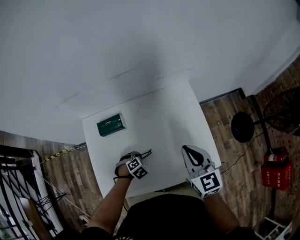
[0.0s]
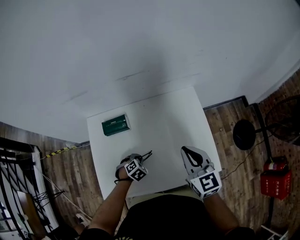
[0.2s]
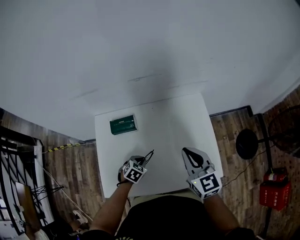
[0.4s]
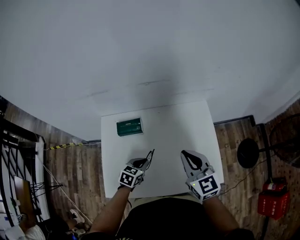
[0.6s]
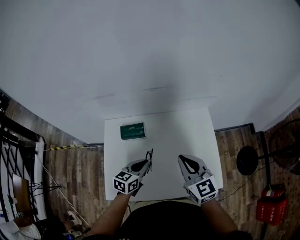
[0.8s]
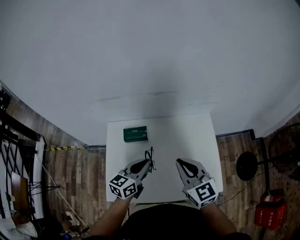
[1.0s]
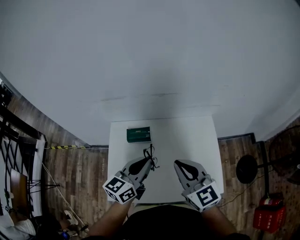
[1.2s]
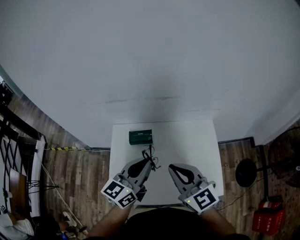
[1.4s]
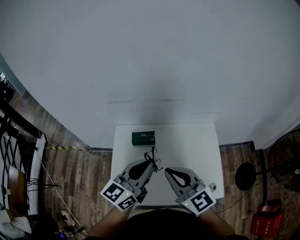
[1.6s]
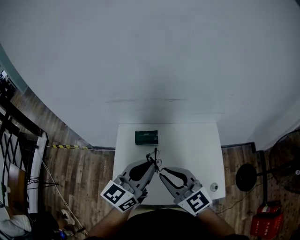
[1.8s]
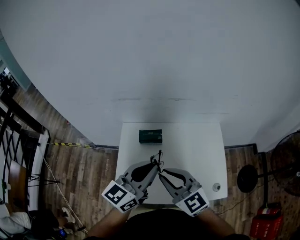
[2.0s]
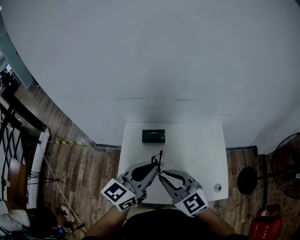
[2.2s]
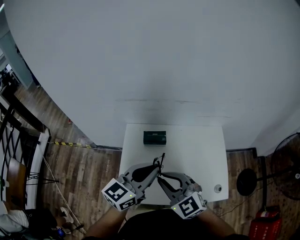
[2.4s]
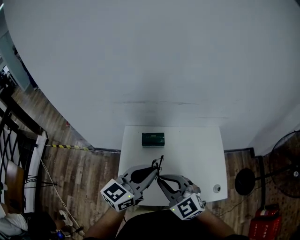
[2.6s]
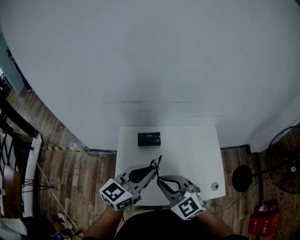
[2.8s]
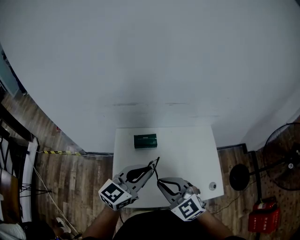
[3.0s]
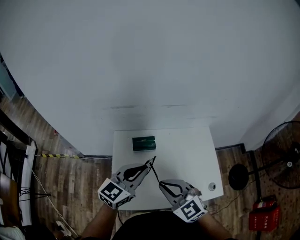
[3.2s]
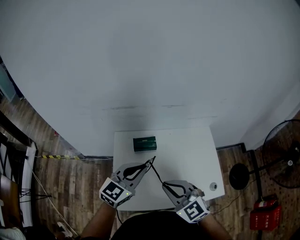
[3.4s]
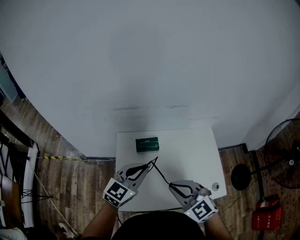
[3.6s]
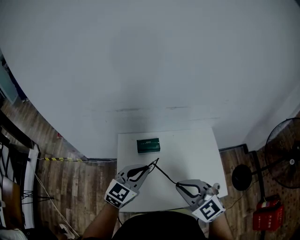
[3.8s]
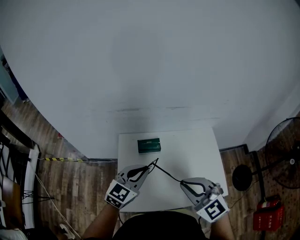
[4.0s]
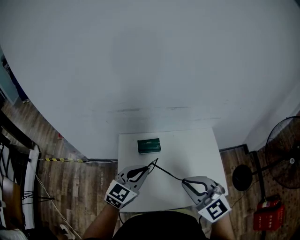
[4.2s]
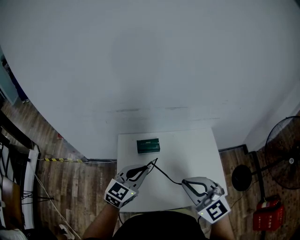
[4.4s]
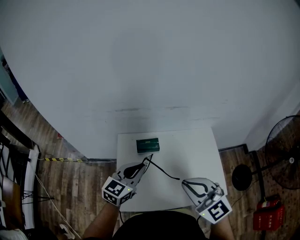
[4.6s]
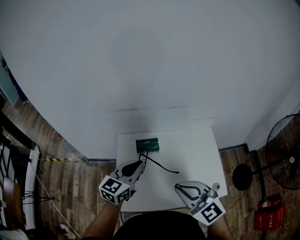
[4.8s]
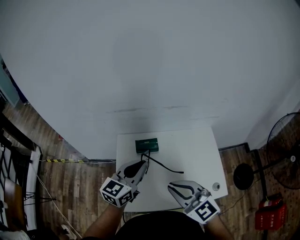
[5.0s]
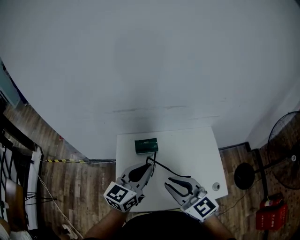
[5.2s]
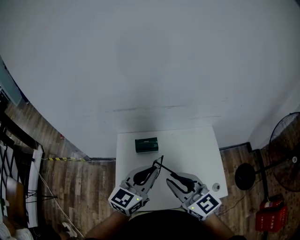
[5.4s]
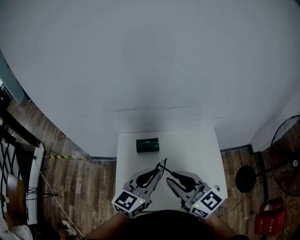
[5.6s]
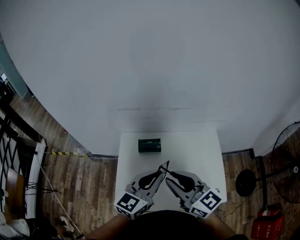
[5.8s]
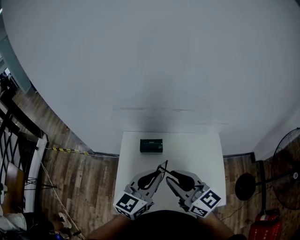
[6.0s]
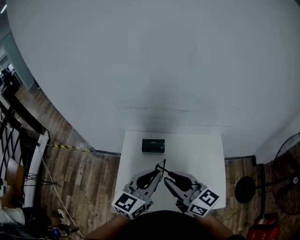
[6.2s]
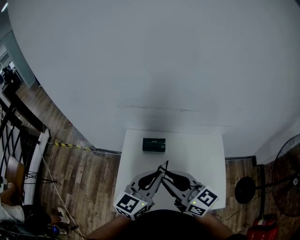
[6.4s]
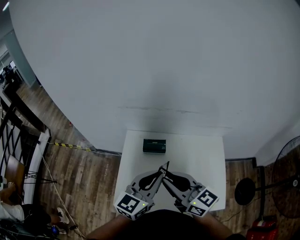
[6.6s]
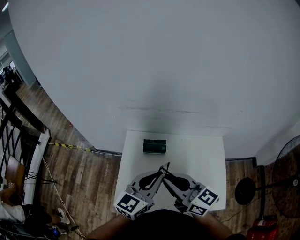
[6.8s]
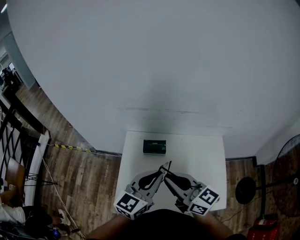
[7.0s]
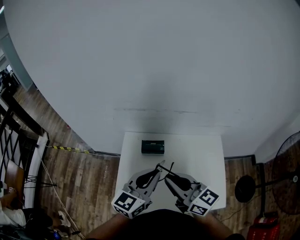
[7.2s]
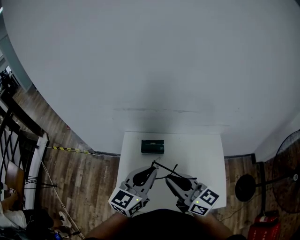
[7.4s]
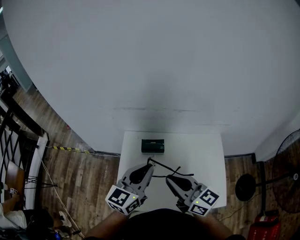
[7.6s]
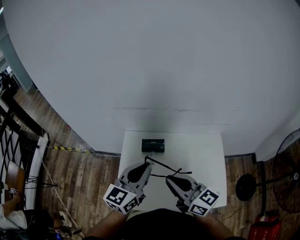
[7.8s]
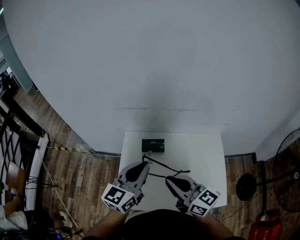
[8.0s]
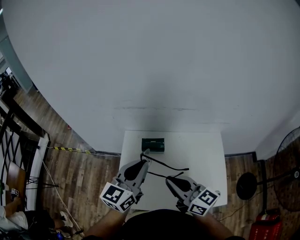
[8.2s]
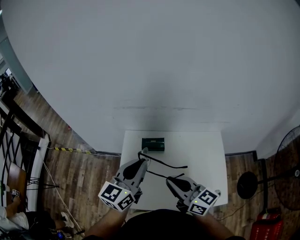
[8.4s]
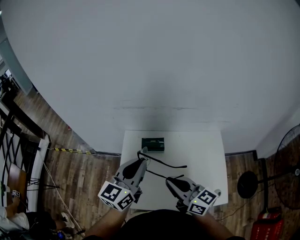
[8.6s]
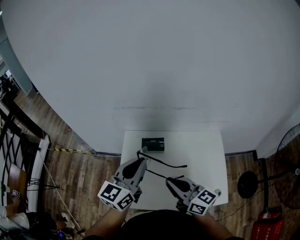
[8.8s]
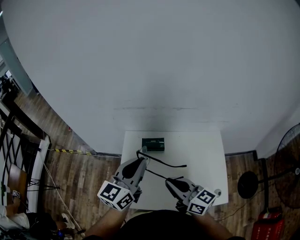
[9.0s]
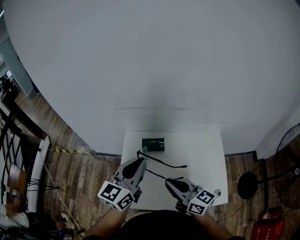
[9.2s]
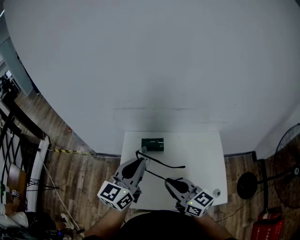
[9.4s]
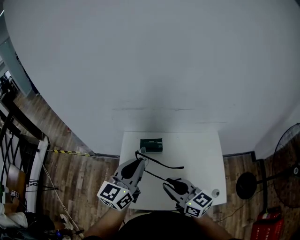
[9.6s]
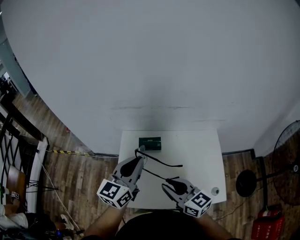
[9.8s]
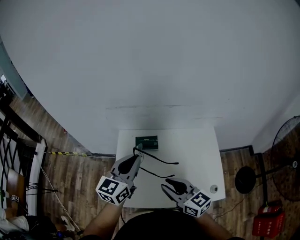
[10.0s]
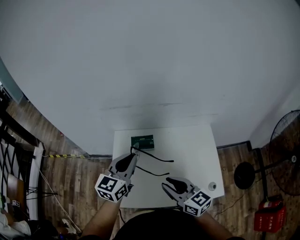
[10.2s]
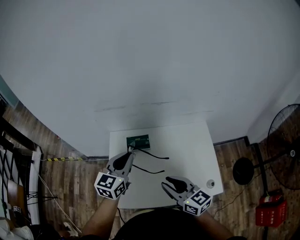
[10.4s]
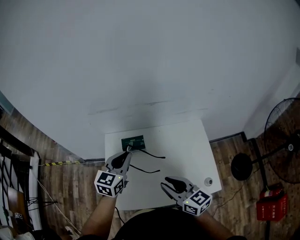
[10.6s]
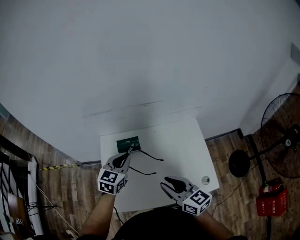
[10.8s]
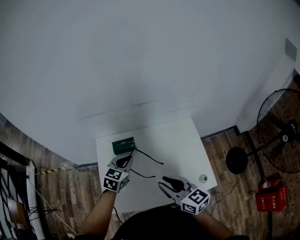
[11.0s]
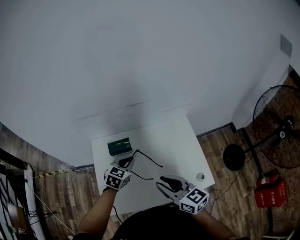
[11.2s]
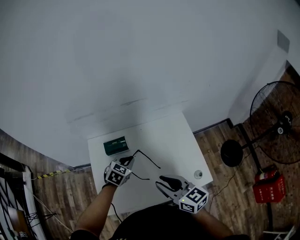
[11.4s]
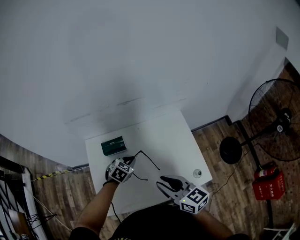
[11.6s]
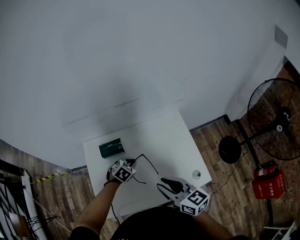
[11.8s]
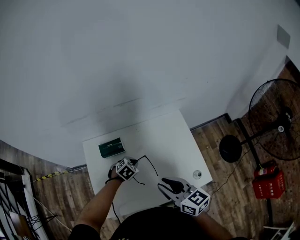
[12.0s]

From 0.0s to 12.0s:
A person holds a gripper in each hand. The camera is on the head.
From 0.0s to 1.6s: The left gripper moves upward, approximately 40 cm, and tips its fingers upward by about 80 degrees; the right gripper shifts by roughly 25 cm, and rotates roughly 30 degrees.
From 1.6s to 3.0s: The left gripper shifts approximately 5 cm to the left; the right gripper travels to the left and downward by about 10 cm, and turns by some 20 degrees.
From 3.0s to 4.4s: The left gripper changes place by roughly 5 cm. The right gripper is displaced to the right and upward by approximately 10 cm.
From 4.4s to 6.0s: The left gripper goes approximately 5 cm to the right; the right gripper goes roughly 5 cm forward, and changes its angle by some 40 degrees.
From 6.0s to 7.6s: The left gripper moves some 5 cm.
From 7.6s to 9.0s: There are only small adjustments of the grippers.
From 9.0s to 10.4s: The right gripper changes place by approximately 5 cm, and opens its fingers. The left gripper shifts approximately 5 cm downward.
From 10.4s to 12.0s: The right gripper shifts some 10 cm to the right, while the left gripper travels downward and to the right by about 35 cm, and tilts its fingers some 50 degrees downward.

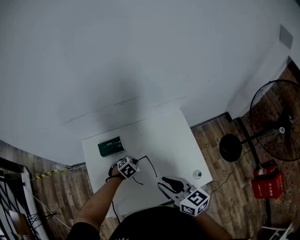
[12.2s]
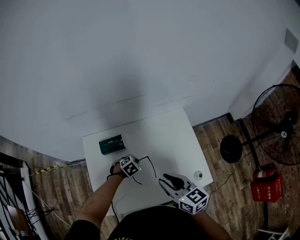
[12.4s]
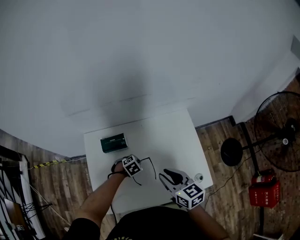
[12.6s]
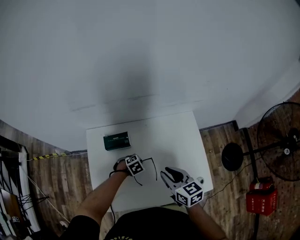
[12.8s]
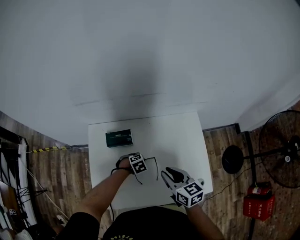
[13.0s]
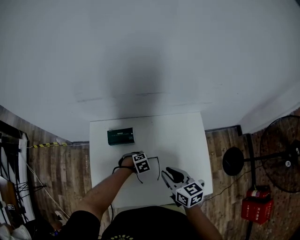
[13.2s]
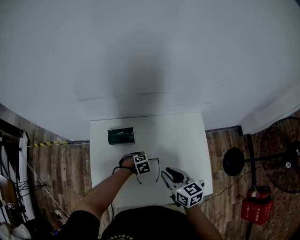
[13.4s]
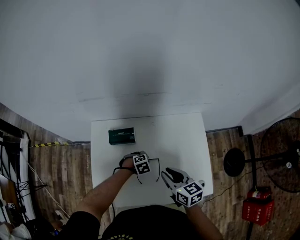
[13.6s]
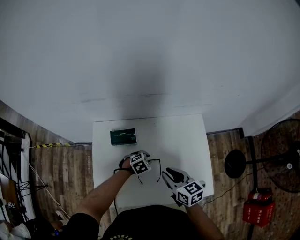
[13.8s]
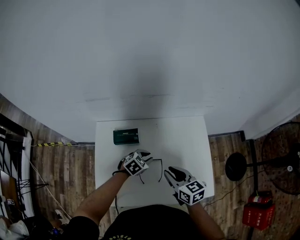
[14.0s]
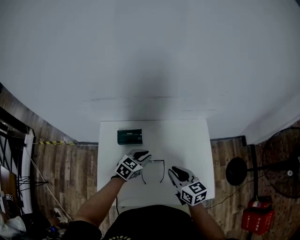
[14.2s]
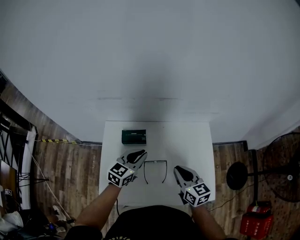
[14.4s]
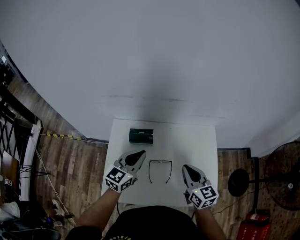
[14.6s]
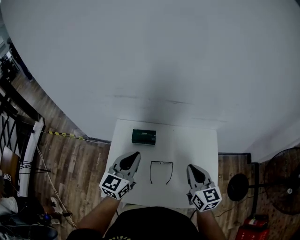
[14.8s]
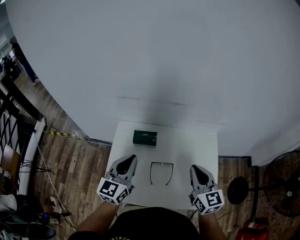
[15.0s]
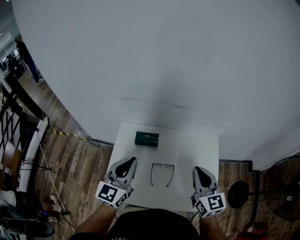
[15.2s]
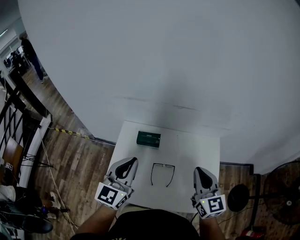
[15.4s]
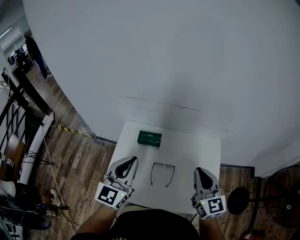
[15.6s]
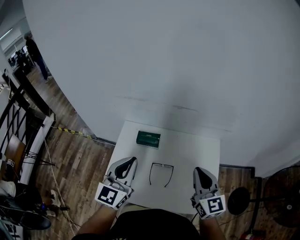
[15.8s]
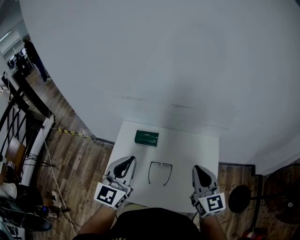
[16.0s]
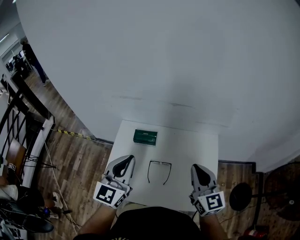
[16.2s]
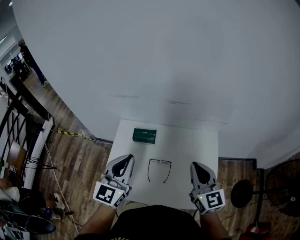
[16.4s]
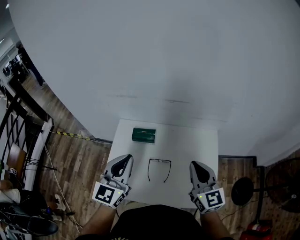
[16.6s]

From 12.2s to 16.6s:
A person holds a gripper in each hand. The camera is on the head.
From 12.2s to 13.6s: The right gripper travels downward and forward by roughly 10 cm. The left gripper is displaced downward by some 5 cm.
From 13.6s to 15.2s: The left gripper moves upward, roughly 40 cm, and tilts its fingers roughly 70 degrees upward. Meanwhile the right gripper goes approximately 15 cm upward, swivels about 30 degrees, and closes its fingers.
From 15.2s to 16.6s: The grippers stay close to where they were, moving slightly.

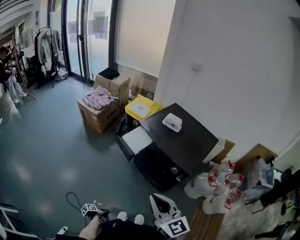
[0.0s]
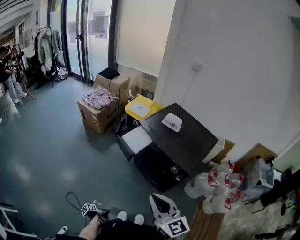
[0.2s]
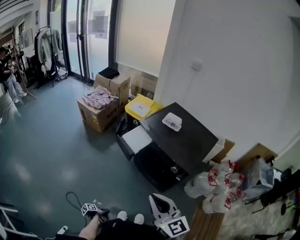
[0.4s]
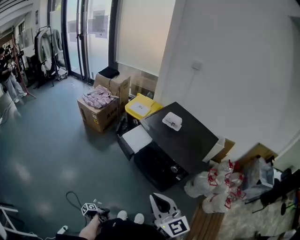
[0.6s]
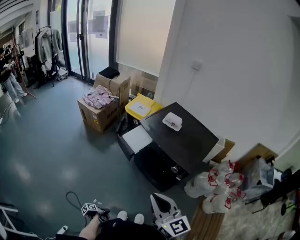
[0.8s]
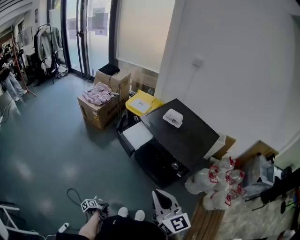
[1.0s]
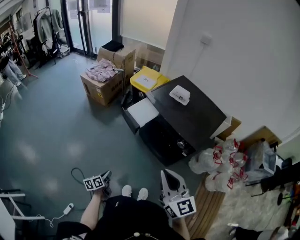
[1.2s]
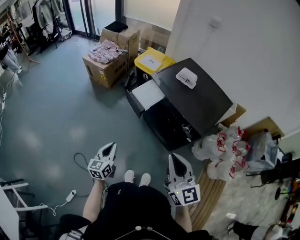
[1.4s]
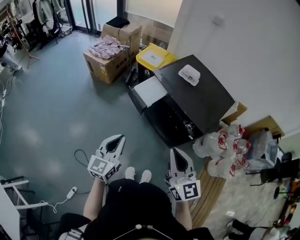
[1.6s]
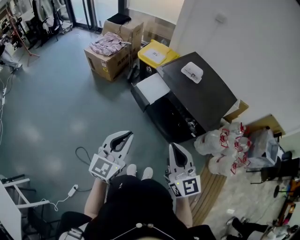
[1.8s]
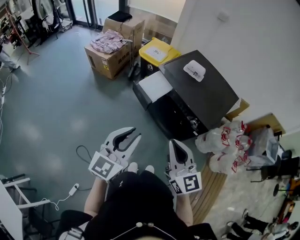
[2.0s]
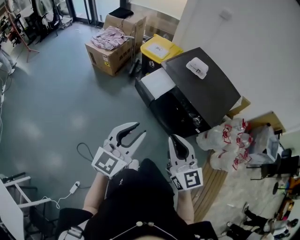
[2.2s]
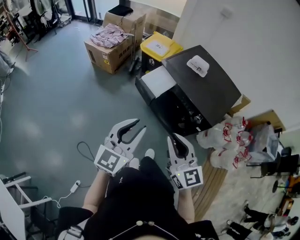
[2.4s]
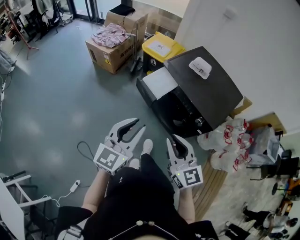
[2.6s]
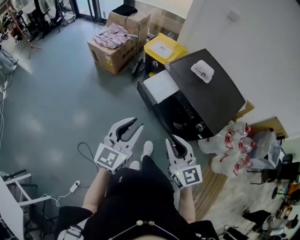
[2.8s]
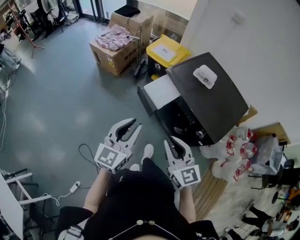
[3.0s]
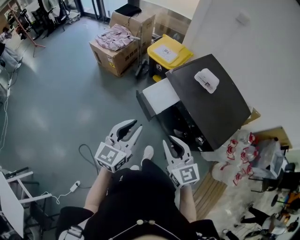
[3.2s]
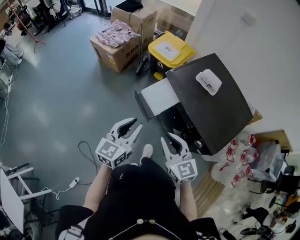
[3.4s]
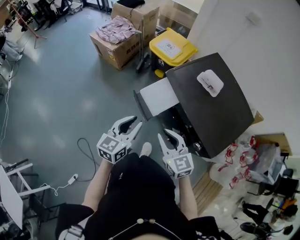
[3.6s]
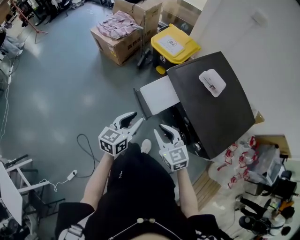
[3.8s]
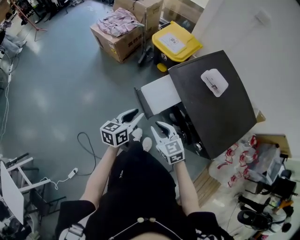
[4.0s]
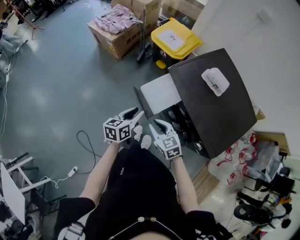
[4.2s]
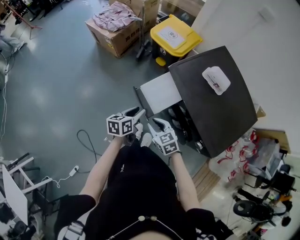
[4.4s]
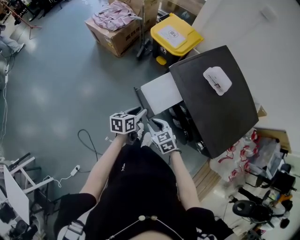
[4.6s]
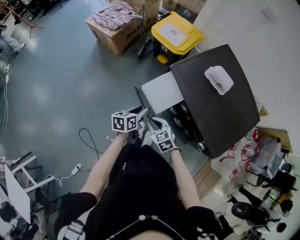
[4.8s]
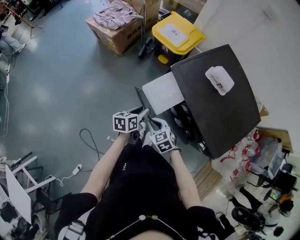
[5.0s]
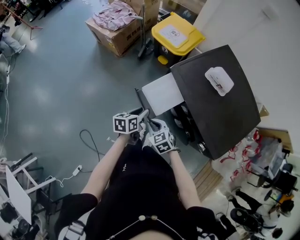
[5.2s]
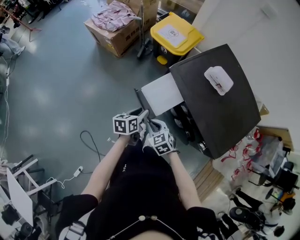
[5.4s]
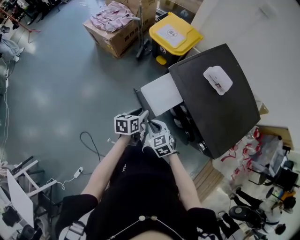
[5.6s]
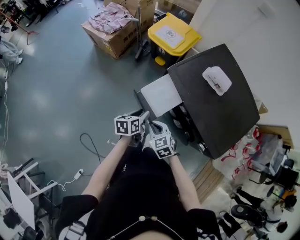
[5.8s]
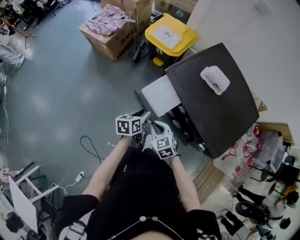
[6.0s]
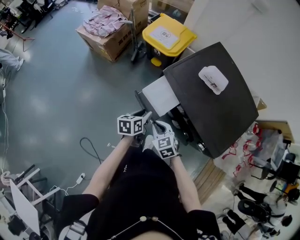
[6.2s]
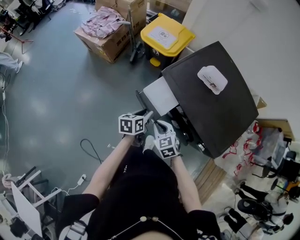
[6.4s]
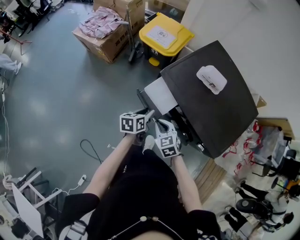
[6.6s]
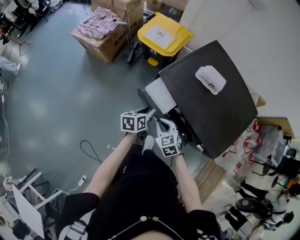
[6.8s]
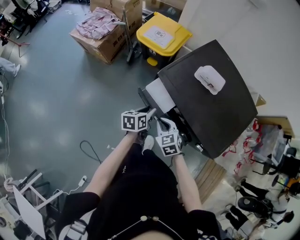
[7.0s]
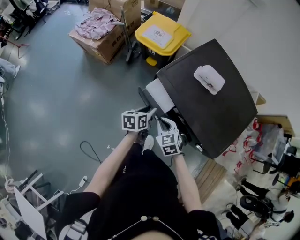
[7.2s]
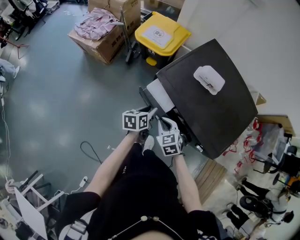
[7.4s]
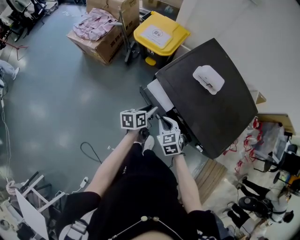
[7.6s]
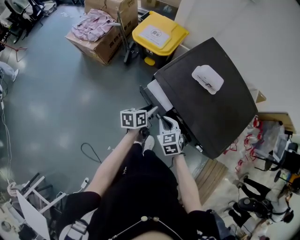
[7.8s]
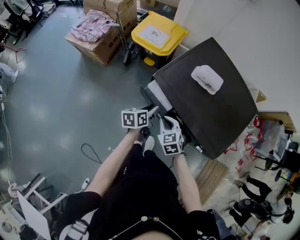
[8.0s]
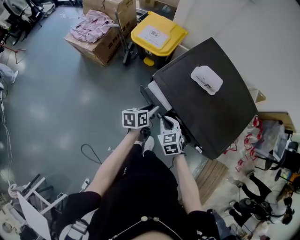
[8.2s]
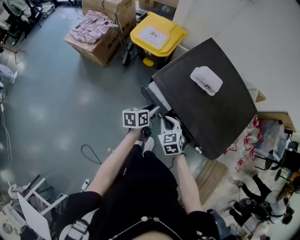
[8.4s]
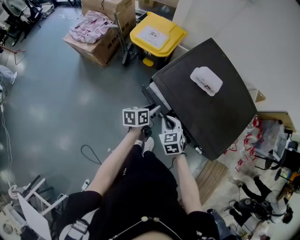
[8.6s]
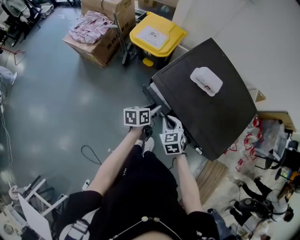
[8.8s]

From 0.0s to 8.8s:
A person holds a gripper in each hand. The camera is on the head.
From 0.0s to 1.4s: The left gripper goes approximately 35 cm upward and forward, and twists about 80 degrees clockwise, seen from behind.
From 1.4s to 3.0s: The left gripper travels upward and forward by roughly 20 cm, and opens, while the right gripper moves forward, downward and to the left, roughly 15 cm.
From 3.0s to 4.4s: Both grippers move downward and forward, about 30 cm. The left gripper rotates approximately 50 degrees; the right gripper turns by about 40 degrees.
From 4.4s to 5.8s: The grippers make only small movements.
From 5.8s to 7.4s: The right gripper goes about 10 cm forward and to the right. Meanwhile the left gripper heads to the right and forward, covering roughly 10 cm.
From 7.4s to 8.8s: The left gripper ends up roughly 5 cm from where it was, while the right gripper changes place by approximately 5 cm.
